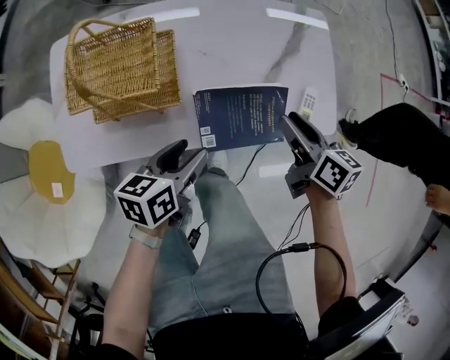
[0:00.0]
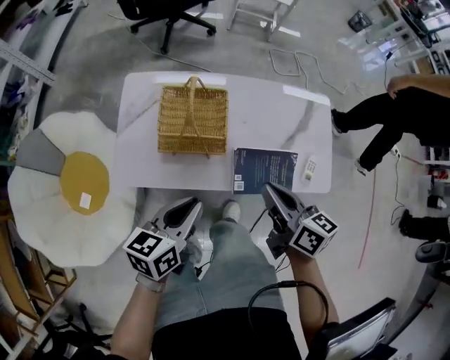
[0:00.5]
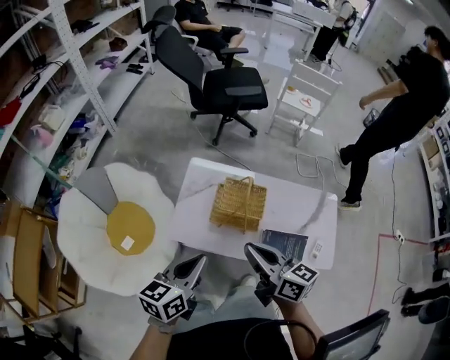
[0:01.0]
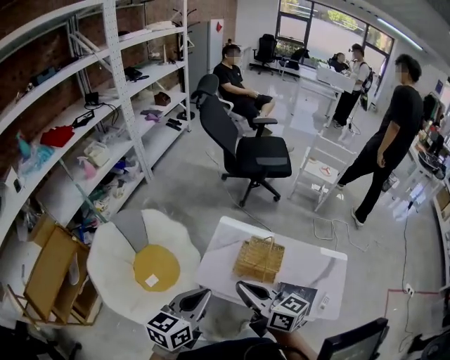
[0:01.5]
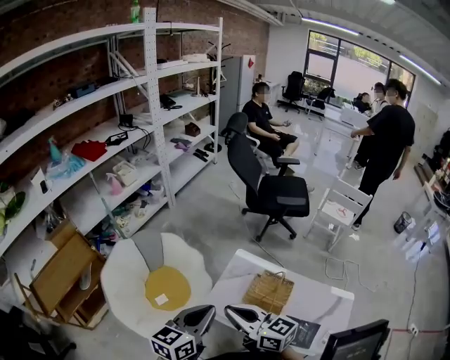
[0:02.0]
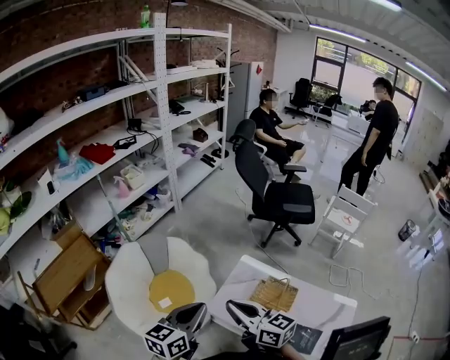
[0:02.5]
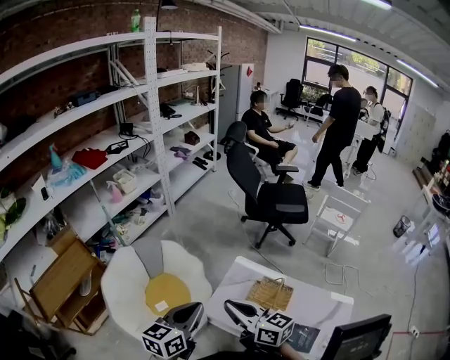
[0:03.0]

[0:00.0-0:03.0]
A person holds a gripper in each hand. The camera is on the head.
0.0 to 1.5 s: The left gripper is displaced upward by approximately 50 cm, swivels some 40 degrees, and closes up; the right gripper moves some 70 cm, tilts its fingers approximately 30 degrees upward, and closes its fingers.
1.5 to 3.0 s: The two grippers go roughly 5 cm to the left.

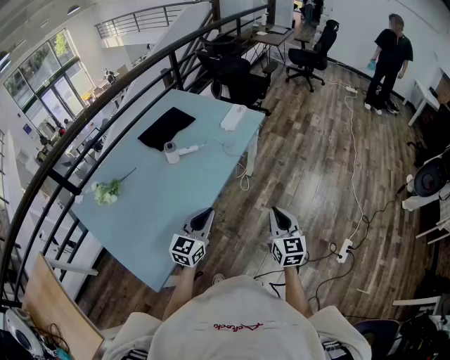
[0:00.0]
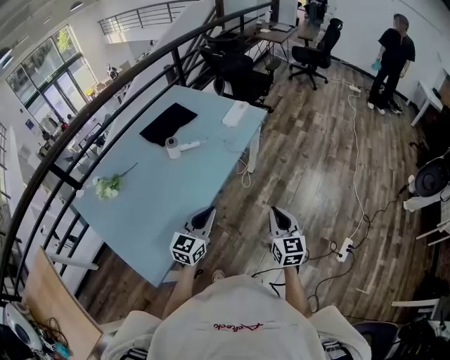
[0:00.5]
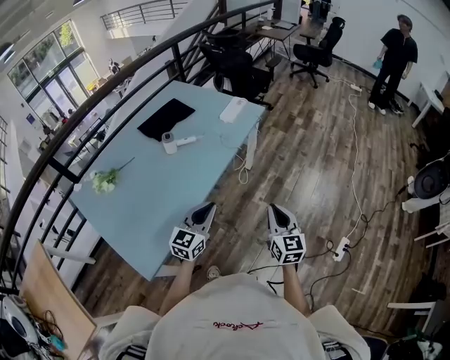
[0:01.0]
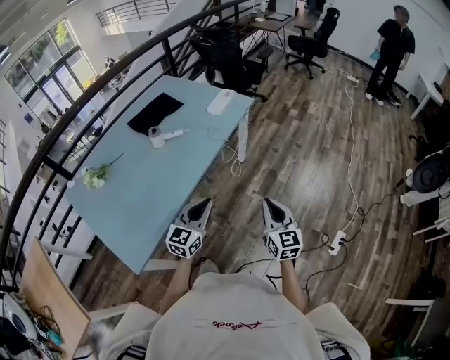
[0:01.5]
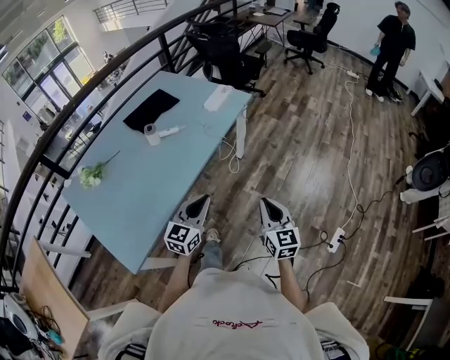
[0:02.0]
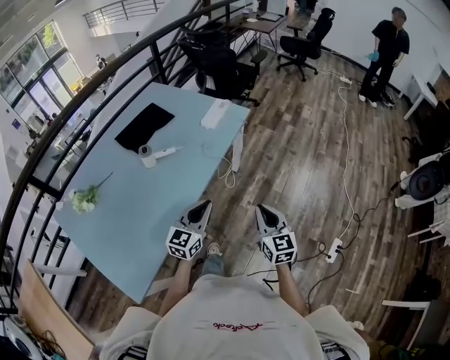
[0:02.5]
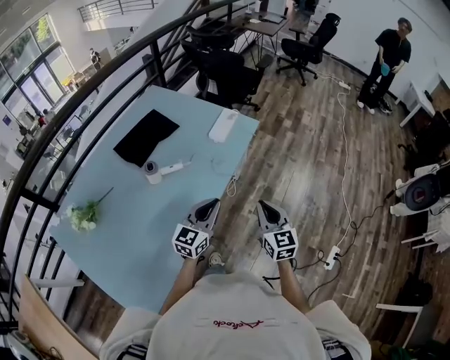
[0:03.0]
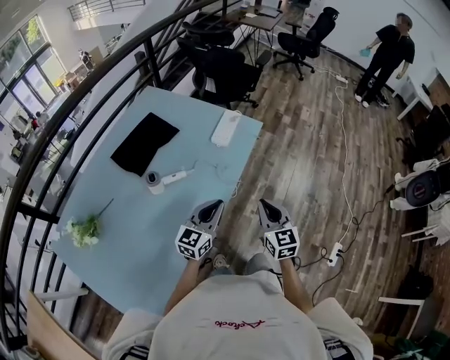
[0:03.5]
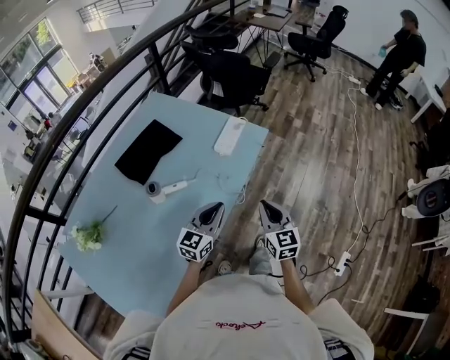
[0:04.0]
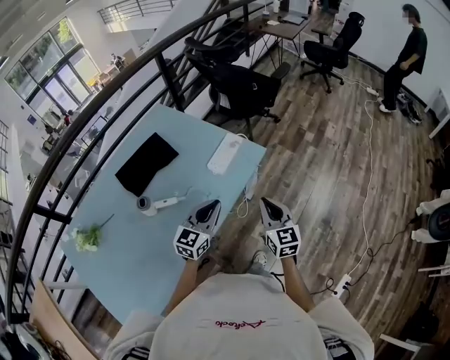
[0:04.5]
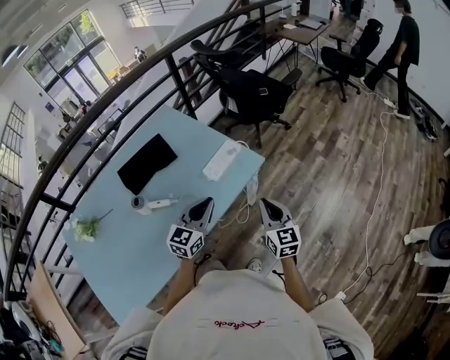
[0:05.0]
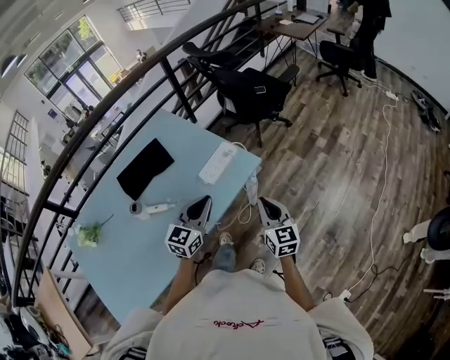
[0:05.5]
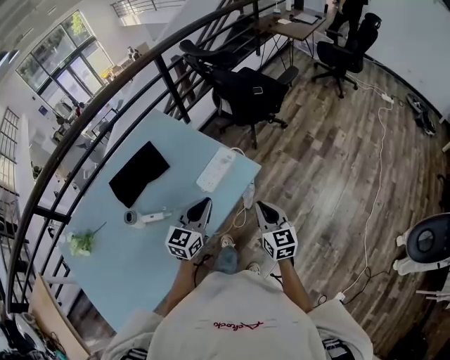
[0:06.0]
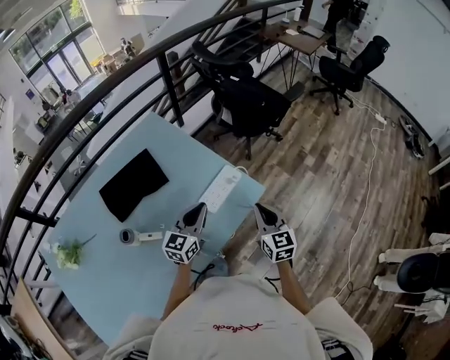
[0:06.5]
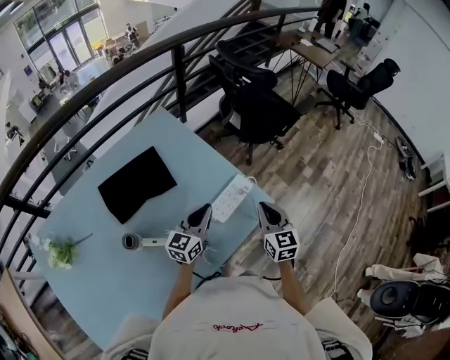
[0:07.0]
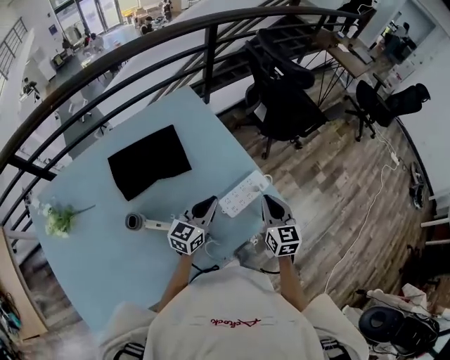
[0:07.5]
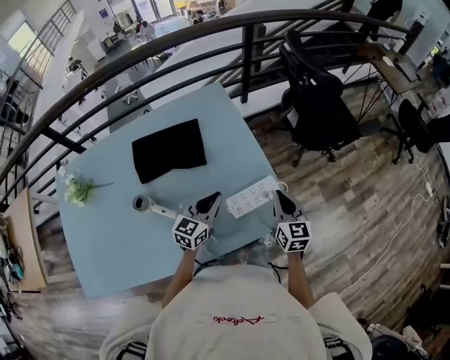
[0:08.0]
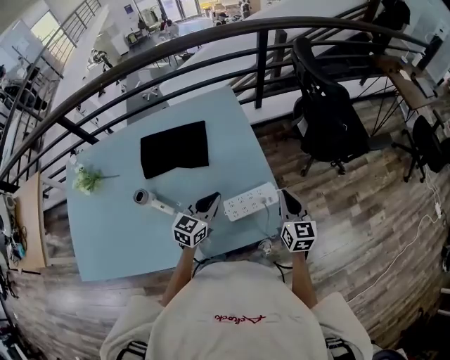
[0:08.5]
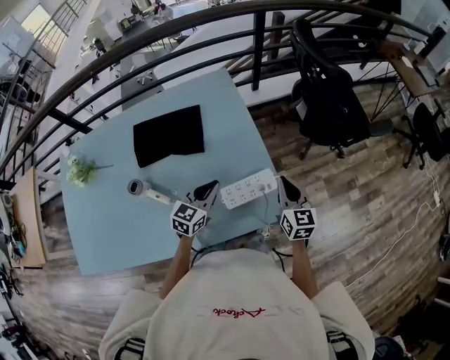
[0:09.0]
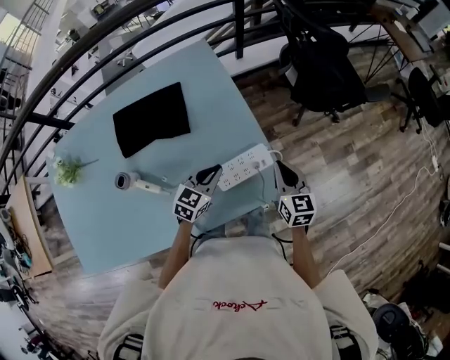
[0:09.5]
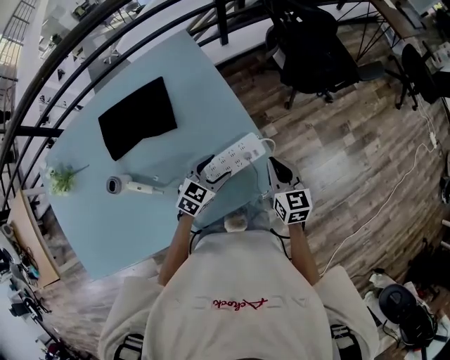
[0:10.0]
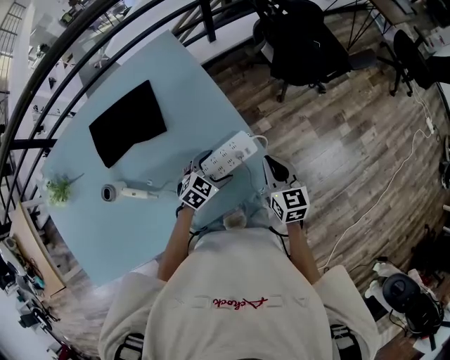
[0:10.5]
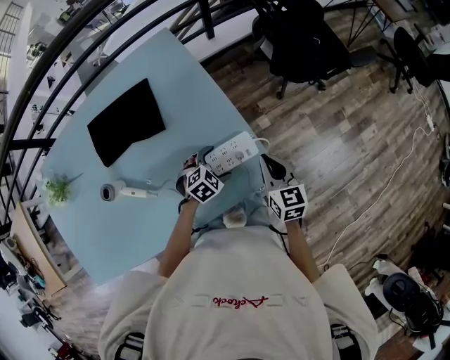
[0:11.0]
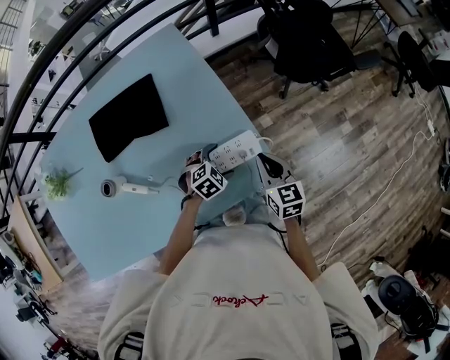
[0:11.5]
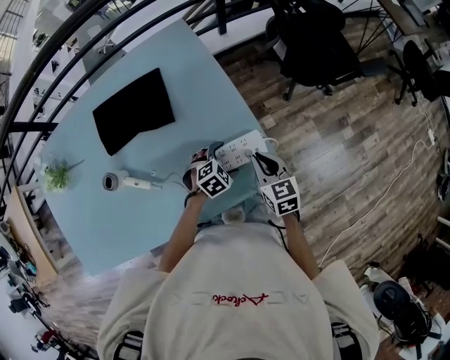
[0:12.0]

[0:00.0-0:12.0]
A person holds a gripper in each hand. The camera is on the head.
0.0 to 2.0 s: The two grippers go approximately 10 cm to the right.
2.0 to 4.0 s: The right gripper moves forward and to the left, some 35 cm; the left gripper is displaced forward by approximately 30 cm.
4.0 to 6.0 s: Both grippers move forward and to the right, approximately 25 cm.
6.0 to 8.0 s: The left gripper goes some 20 cm forward, to the left and downward, and turns by some 20 degrees. Meanwhile the right gripper travels forward and to the left by approximately 30 cm, and turns by roughly 20 degrees.
8.0 to 10.0 s: The right gripper shifts some 10 cm downward and to the right, while the left gripper heads downward and to the right, covering about 15 cm, rotates approximately 30 degrees, and opens its fingers.
10.0 to 12.0 s: The left gripper is displaced downward by roughly 5 cm, swivels about 30 degrees, and opens. Meanwhile the right gripper changes place by approximately 5 cm.

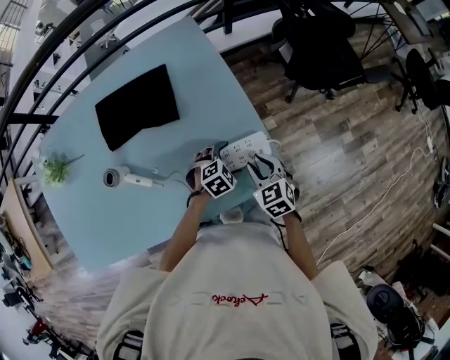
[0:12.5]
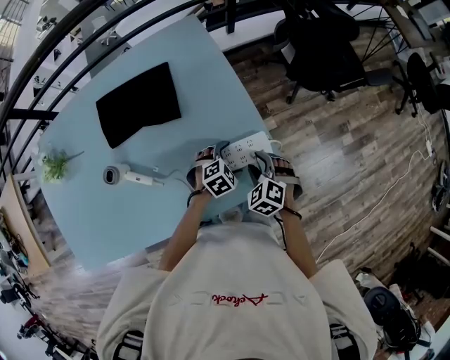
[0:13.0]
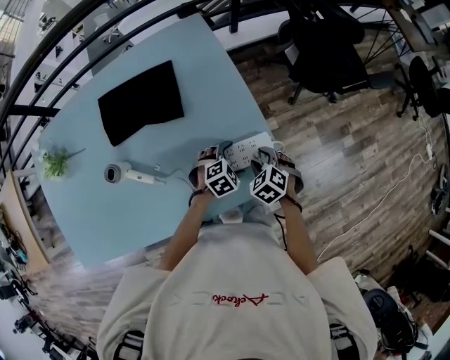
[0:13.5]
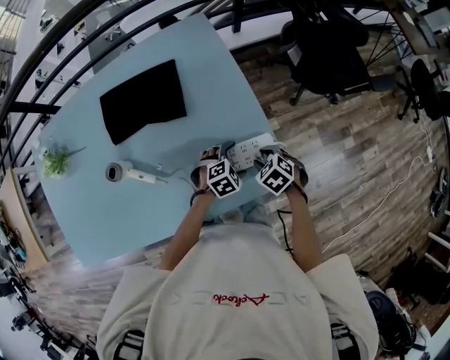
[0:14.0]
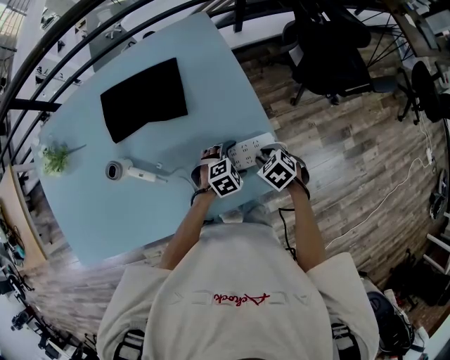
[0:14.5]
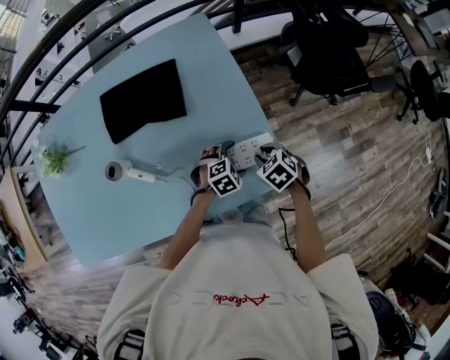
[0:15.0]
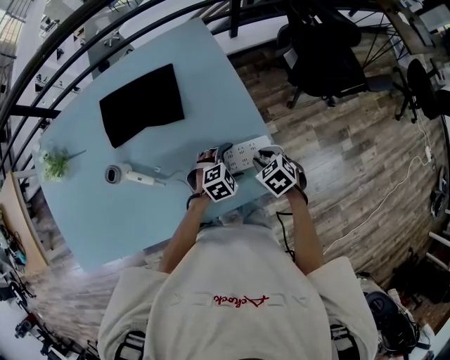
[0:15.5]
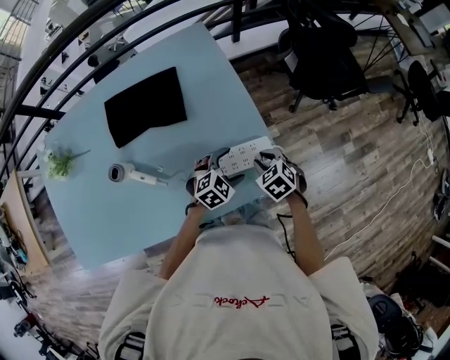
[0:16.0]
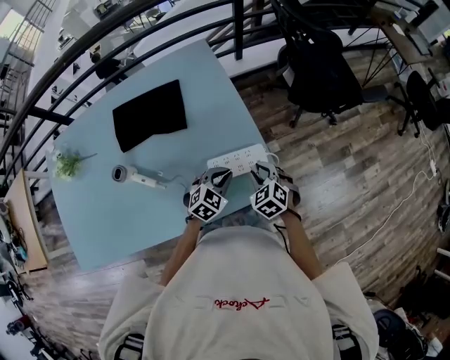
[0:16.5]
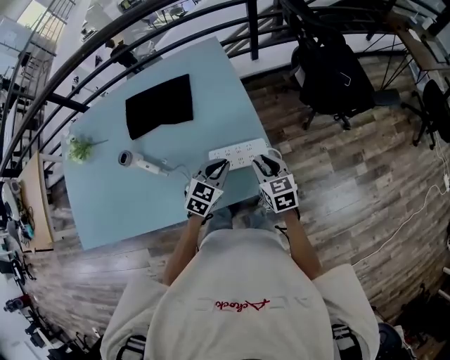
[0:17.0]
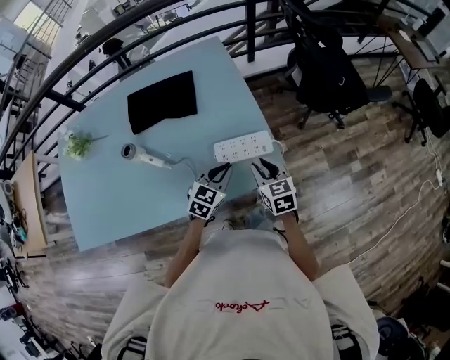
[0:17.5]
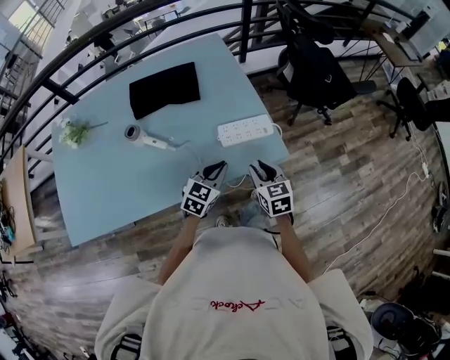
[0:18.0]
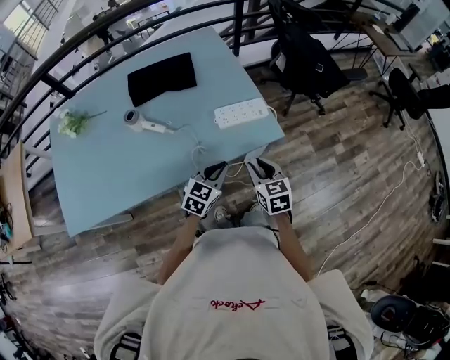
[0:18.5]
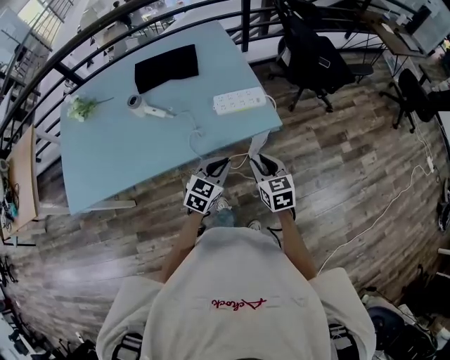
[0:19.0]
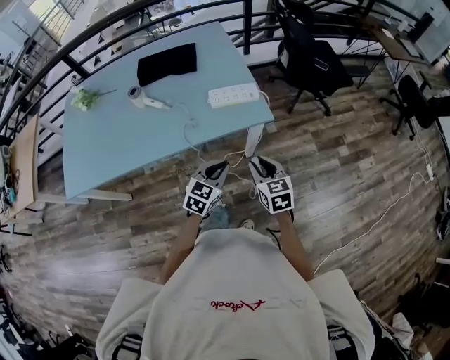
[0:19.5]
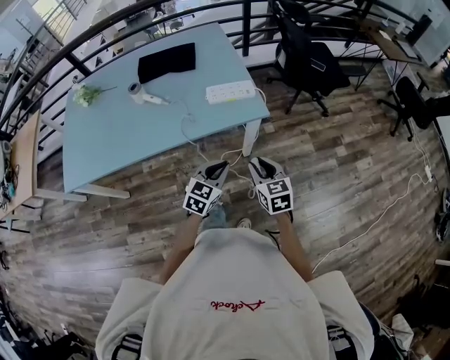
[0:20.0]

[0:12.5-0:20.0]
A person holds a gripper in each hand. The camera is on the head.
12.5 to 14.5 s: The right gripper goes roughly 5 cm downward, and changes its angle by roughly 30 degrees.
14.5 to 16.5 s: Both grippers travel together upward, some 5 cm. The left gripper turns by approximately 20 degrees, and closes up, while the right gripper turns by about 20 degrees.
16.5 to 18.0 s: The right gripper shifts roughly 15 cm backward and upward, and swivels approximately 30 degrees. Meanwhile the left gripper moves backward, to the left and upward, some 15 cm, and swivels approximately 20 degrees.
18.0 to 20.0 s: Both grippers move backward and to the right, approximately 25 cm.

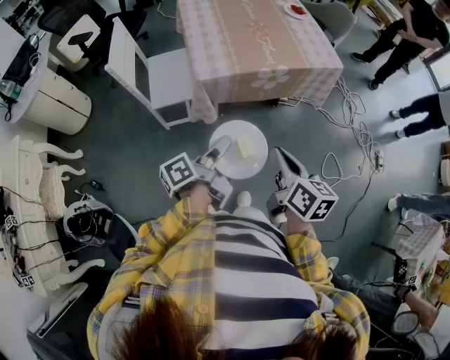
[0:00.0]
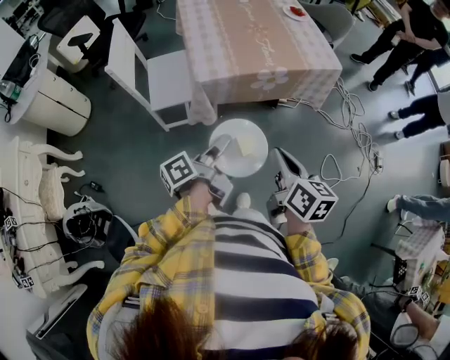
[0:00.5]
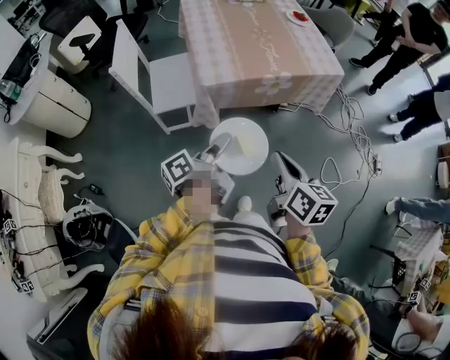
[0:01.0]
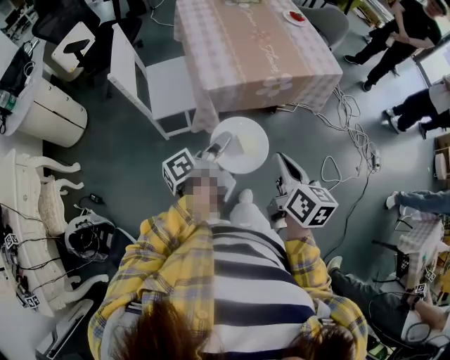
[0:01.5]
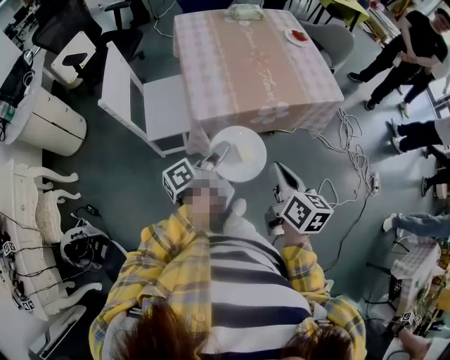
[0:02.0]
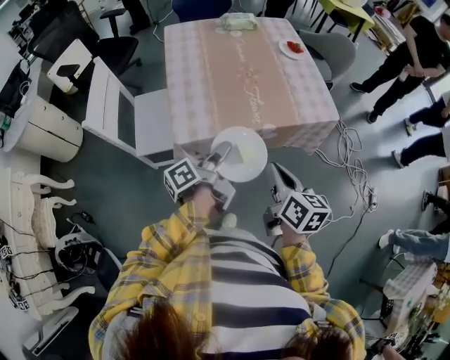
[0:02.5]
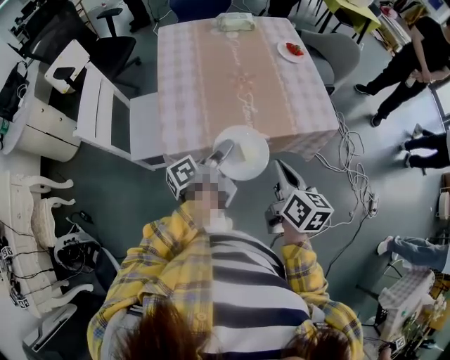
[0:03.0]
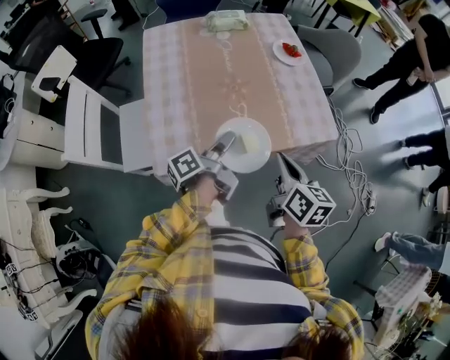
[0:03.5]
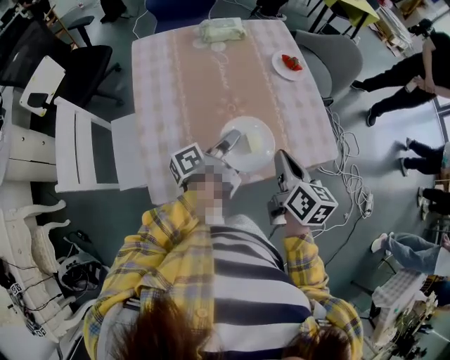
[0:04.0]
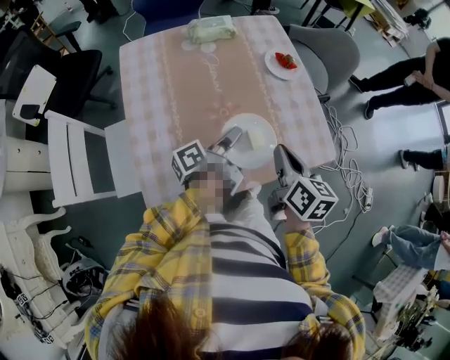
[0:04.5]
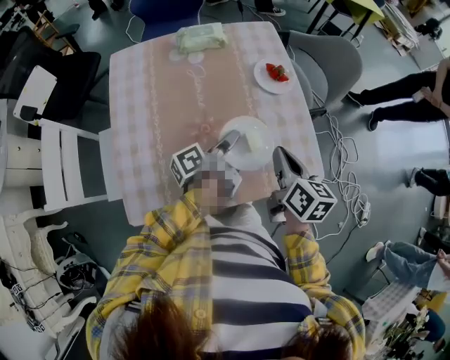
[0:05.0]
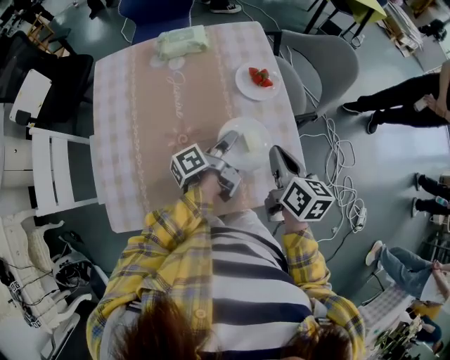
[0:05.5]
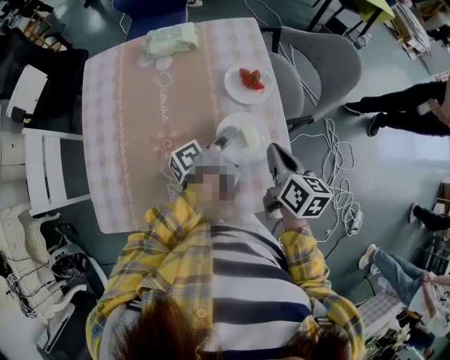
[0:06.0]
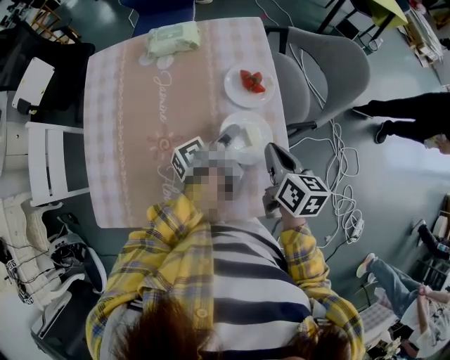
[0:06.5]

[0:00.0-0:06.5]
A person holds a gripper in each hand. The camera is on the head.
0.0 to 2.0 s: The right gripper moves about 10 cm.
2.0 to 4.5 s: The right gripper ends up roughly 40 cm from where it was.
4.5 to 6.5 s: The right gripper ends up some 25 cm from where it was.
